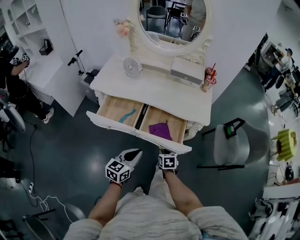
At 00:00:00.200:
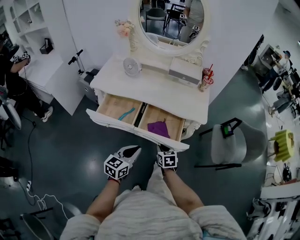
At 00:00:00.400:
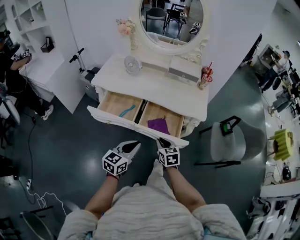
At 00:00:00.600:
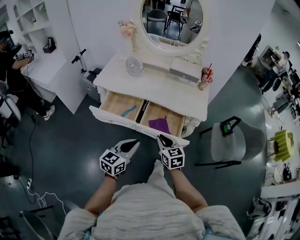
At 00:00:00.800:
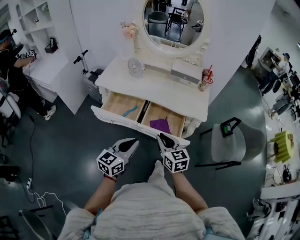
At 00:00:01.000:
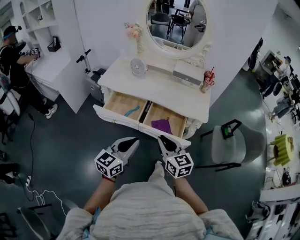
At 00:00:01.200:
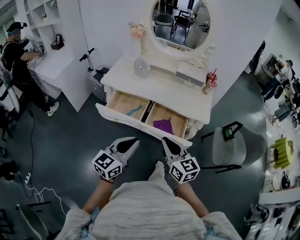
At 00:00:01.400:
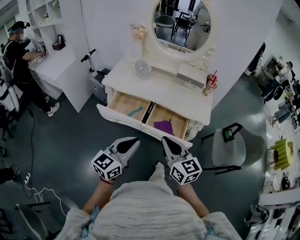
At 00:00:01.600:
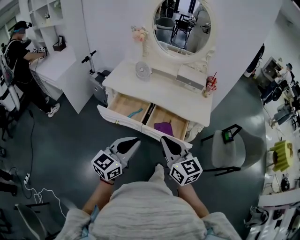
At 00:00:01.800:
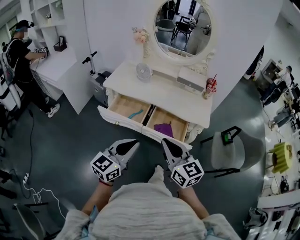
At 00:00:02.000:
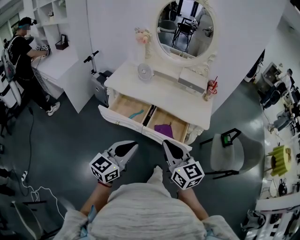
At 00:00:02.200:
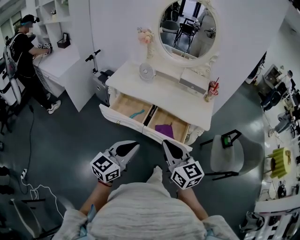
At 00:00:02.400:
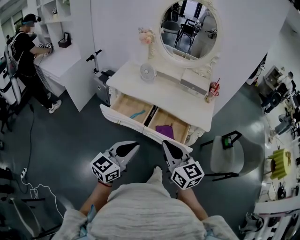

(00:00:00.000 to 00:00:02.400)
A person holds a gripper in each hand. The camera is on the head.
00:00:00.000 - 00:00:01.200: The left gripper shifts roughly 15 cm upward and backward; the right gripper is displaced upward by some 30 cm, and tips its fingers upward by roughly 40 degrees.
00:00:01.200 - 00:00:02.400: The right gripper shifts roughly 5 cm upward.

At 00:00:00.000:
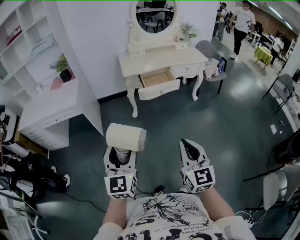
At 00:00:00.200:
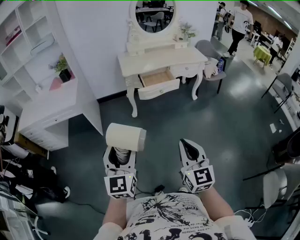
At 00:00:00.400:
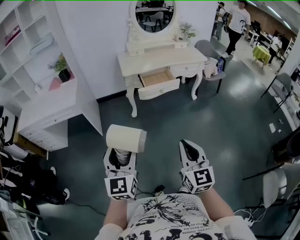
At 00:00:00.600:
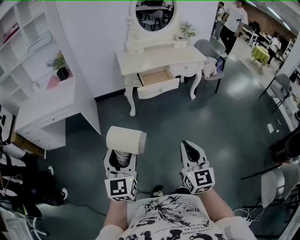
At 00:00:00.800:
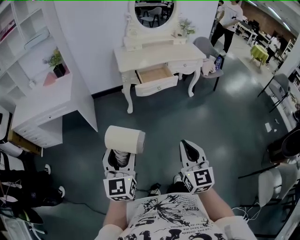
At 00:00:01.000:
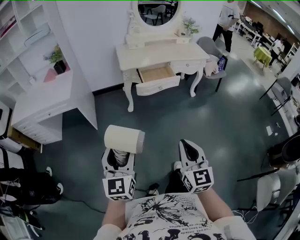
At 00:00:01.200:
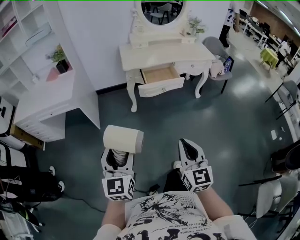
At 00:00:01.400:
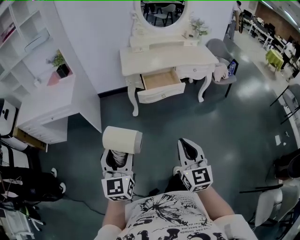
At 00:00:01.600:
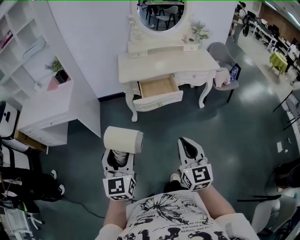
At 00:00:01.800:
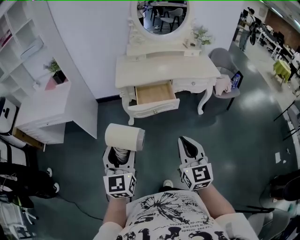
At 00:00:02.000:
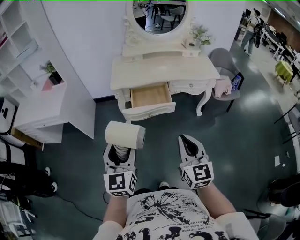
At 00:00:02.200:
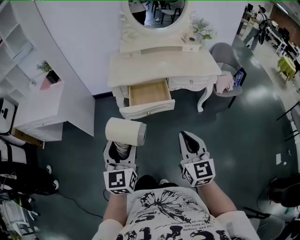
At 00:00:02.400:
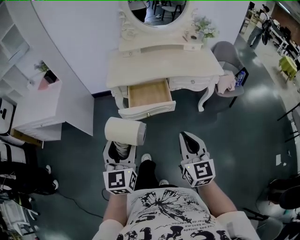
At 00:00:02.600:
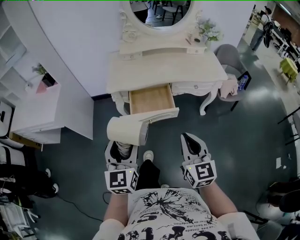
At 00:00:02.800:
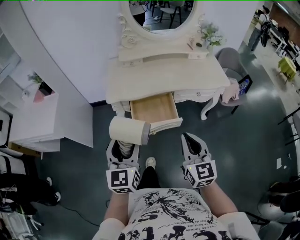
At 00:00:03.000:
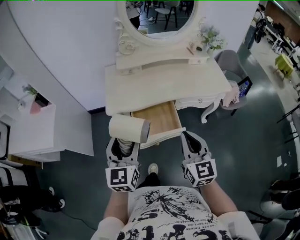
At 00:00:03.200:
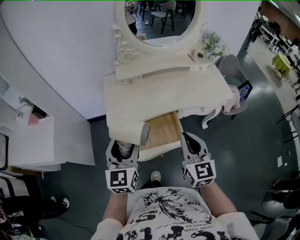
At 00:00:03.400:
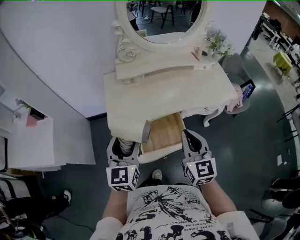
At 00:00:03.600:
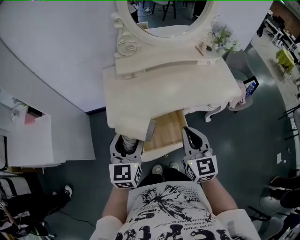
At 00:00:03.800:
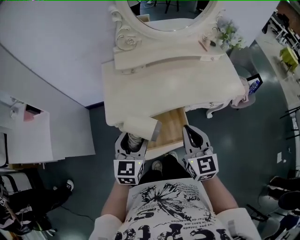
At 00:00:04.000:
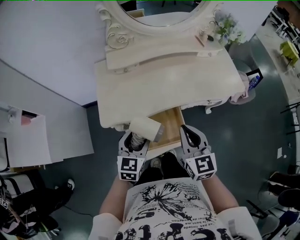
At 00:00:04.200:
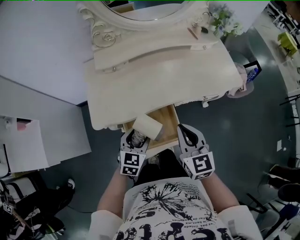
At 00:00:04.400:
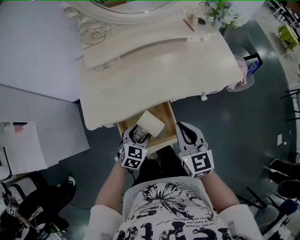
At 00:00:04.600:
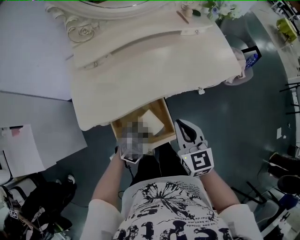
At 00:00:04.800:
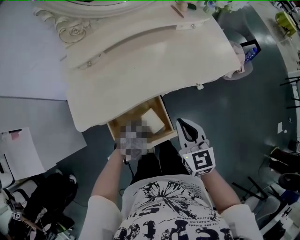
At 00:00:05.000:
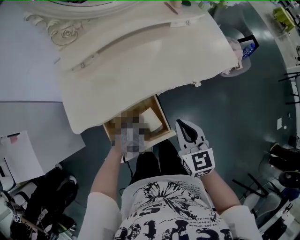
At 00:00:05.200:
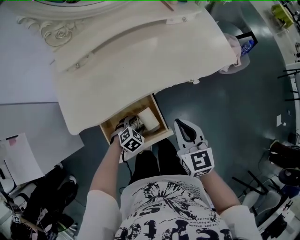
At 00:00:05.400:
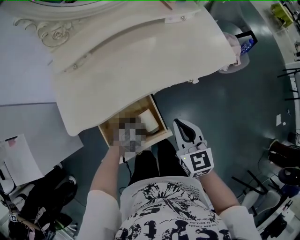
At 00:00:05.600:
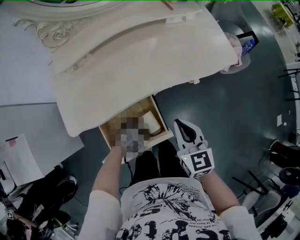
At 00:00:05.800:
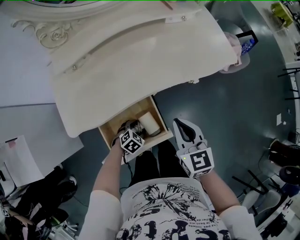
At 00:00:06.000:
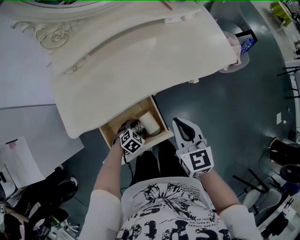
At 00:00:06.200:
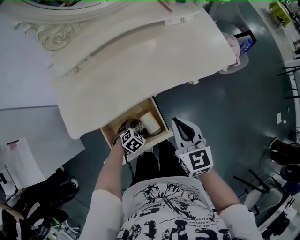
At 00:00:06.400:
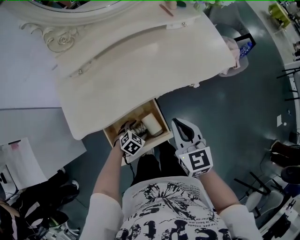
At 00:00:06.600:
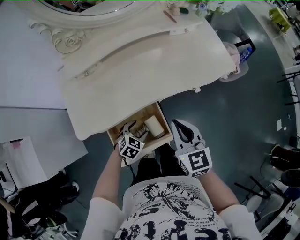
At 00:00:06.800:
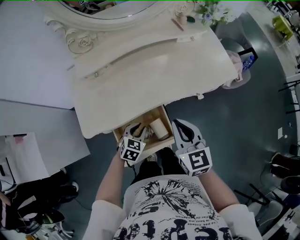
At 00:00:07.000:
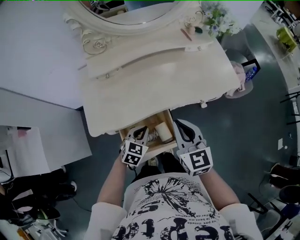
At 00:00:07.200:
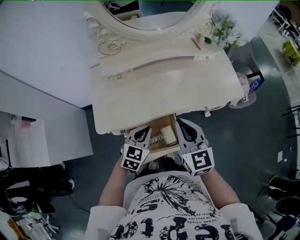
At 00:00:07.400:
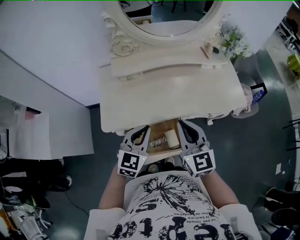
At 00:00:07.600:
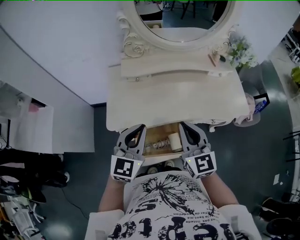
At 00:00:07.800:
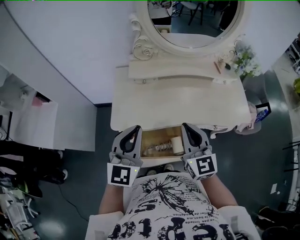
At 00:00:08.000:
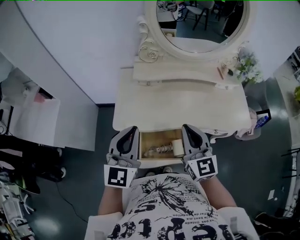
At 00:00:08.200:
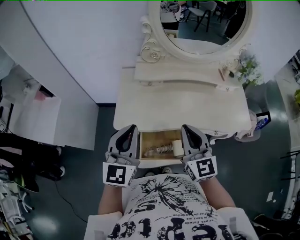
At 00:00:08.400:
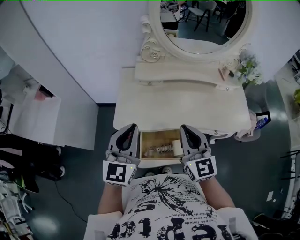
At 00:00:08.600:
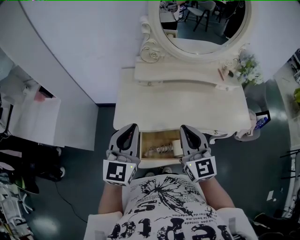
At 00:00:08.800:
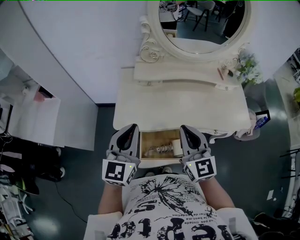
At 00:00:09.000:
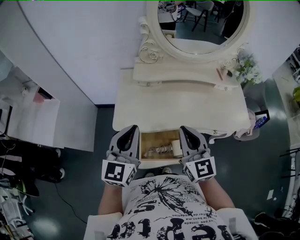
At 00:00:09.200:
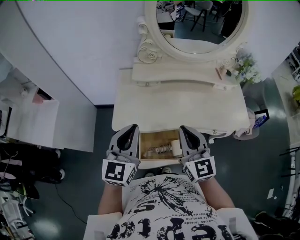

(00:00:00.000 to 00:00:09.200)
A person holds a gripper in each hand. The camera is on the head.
00:00:00.000 - 00:00:01.600: The two grippers go some 20 cm forward and to the right.
00:00:01.600 - 00:00:03.000: Both grippers move forward, approximately 35 cm.
00:00:03.000 - 00:00:04.600: The left gripper shifts about 40 cm downward and forward, and angles its fingers downward, by approximately 50 degrees. Meanwhile the right gripper moves forward and downward, roughly 25 cm.
00:00:04.600 - 00:00:06.200: The left gripper travels downward by approximately 10 cm, and rotates some 20 degrees.
00:00:06.200 - 00:00:07.600: The left gripper travels upward by approximately 40 cm, points its fingers about 60 degrees further upward, and closes up. Meanwhile the right gripper goes roughly 15 cm upward, and rotates approximately 30 degrees.
00:00:07.600 - 00:00:09.200: The left gripper shifts about 5 cm to the left.

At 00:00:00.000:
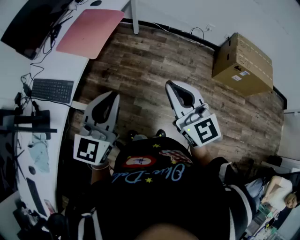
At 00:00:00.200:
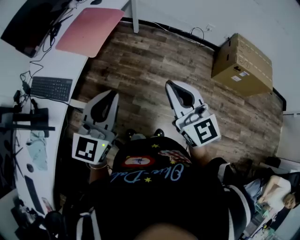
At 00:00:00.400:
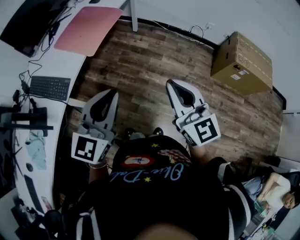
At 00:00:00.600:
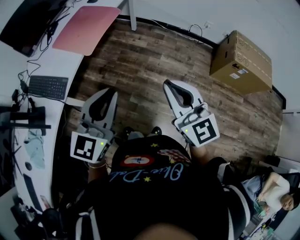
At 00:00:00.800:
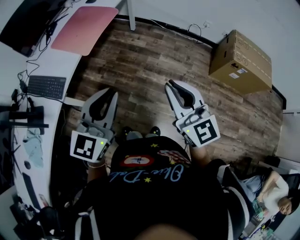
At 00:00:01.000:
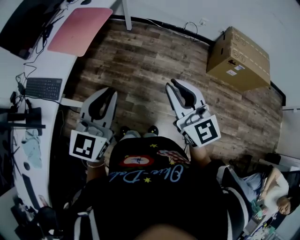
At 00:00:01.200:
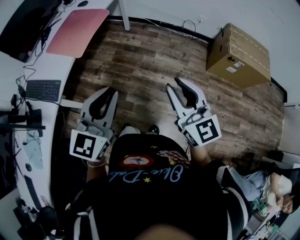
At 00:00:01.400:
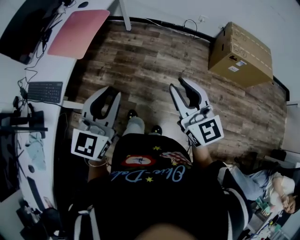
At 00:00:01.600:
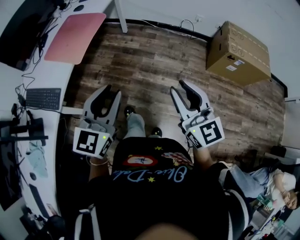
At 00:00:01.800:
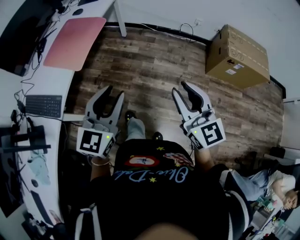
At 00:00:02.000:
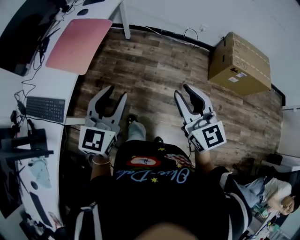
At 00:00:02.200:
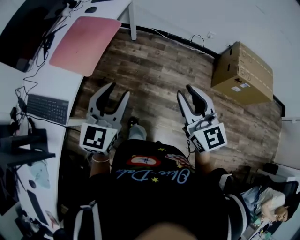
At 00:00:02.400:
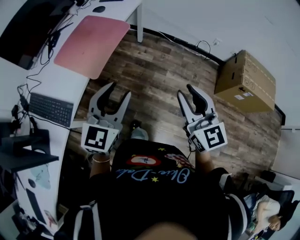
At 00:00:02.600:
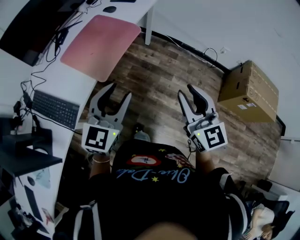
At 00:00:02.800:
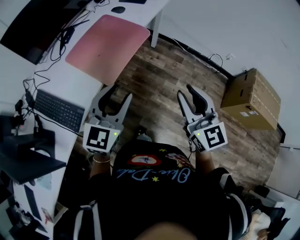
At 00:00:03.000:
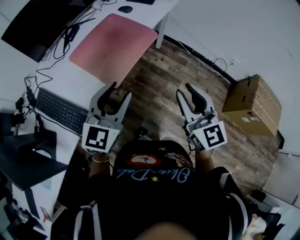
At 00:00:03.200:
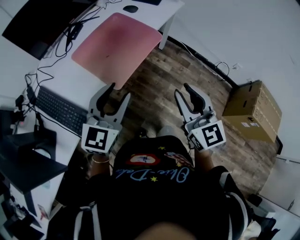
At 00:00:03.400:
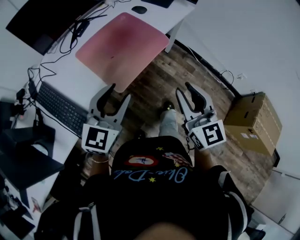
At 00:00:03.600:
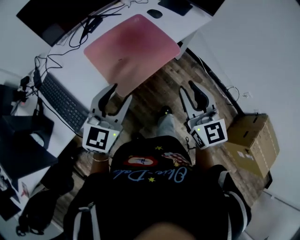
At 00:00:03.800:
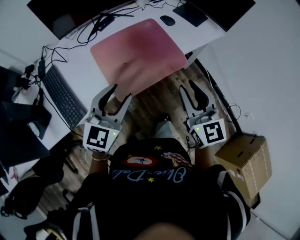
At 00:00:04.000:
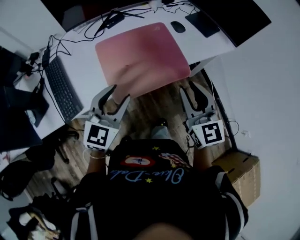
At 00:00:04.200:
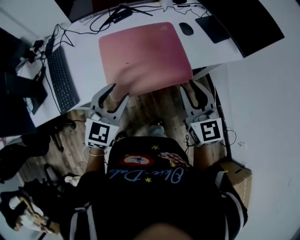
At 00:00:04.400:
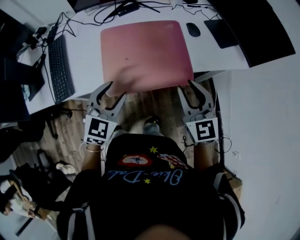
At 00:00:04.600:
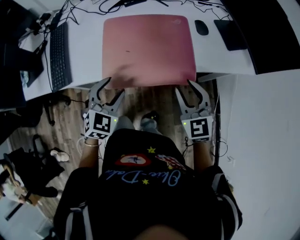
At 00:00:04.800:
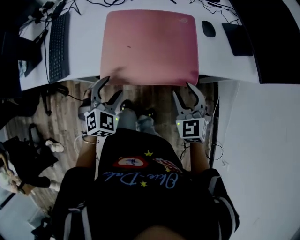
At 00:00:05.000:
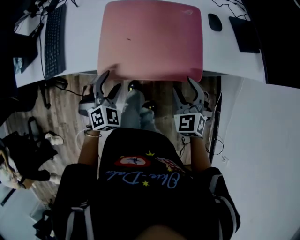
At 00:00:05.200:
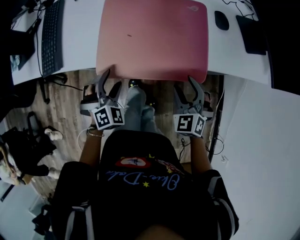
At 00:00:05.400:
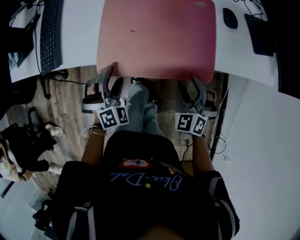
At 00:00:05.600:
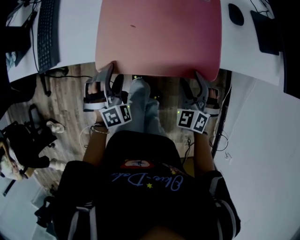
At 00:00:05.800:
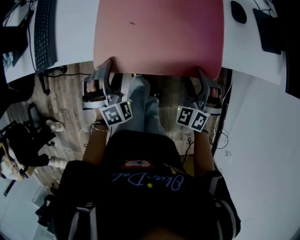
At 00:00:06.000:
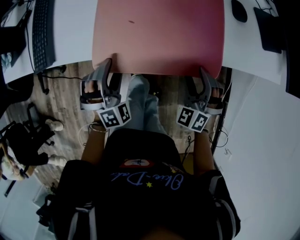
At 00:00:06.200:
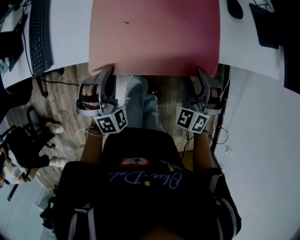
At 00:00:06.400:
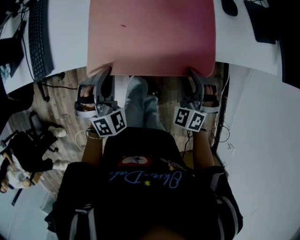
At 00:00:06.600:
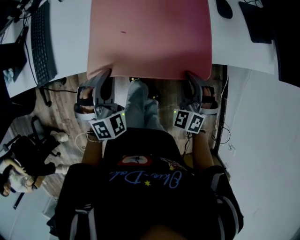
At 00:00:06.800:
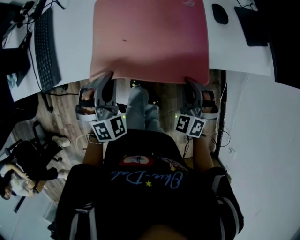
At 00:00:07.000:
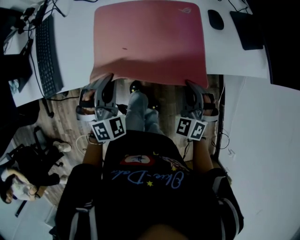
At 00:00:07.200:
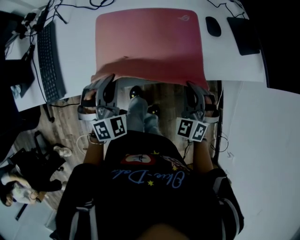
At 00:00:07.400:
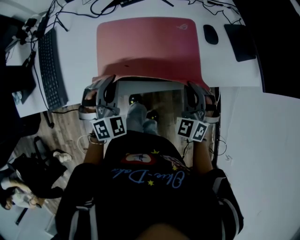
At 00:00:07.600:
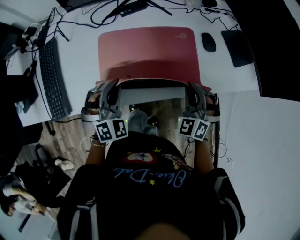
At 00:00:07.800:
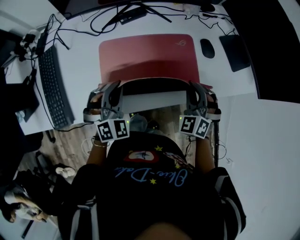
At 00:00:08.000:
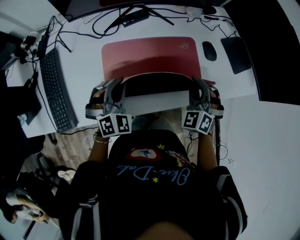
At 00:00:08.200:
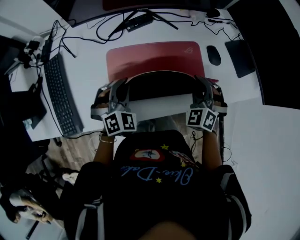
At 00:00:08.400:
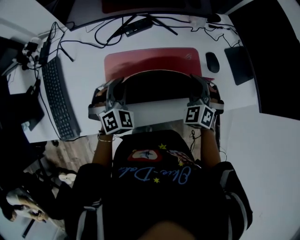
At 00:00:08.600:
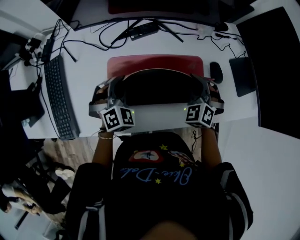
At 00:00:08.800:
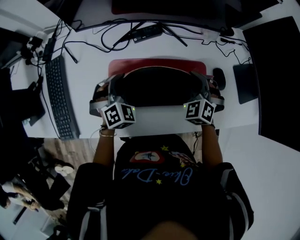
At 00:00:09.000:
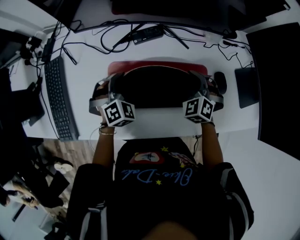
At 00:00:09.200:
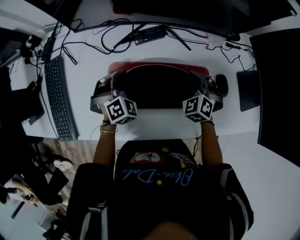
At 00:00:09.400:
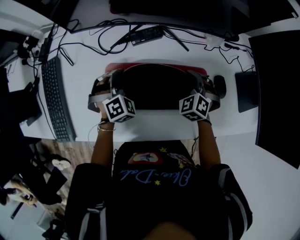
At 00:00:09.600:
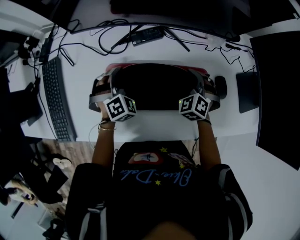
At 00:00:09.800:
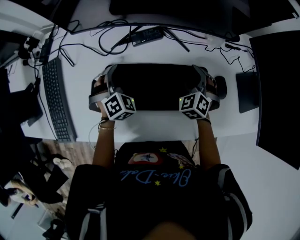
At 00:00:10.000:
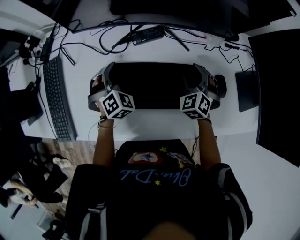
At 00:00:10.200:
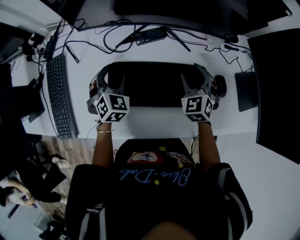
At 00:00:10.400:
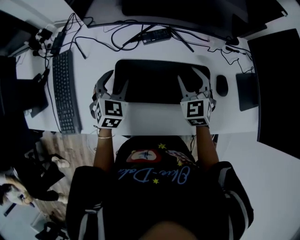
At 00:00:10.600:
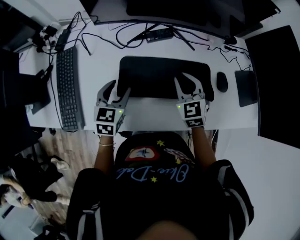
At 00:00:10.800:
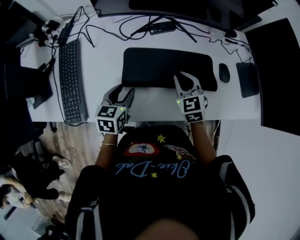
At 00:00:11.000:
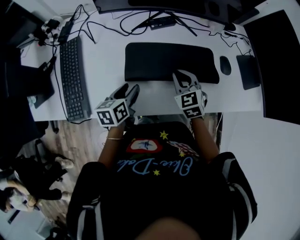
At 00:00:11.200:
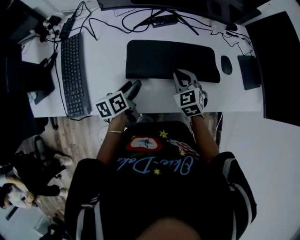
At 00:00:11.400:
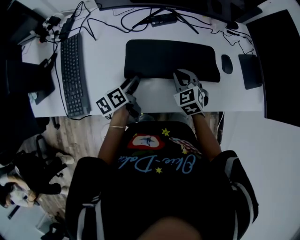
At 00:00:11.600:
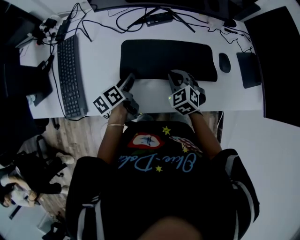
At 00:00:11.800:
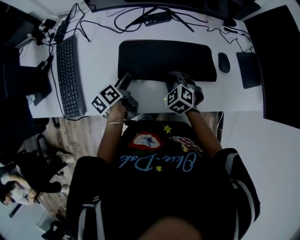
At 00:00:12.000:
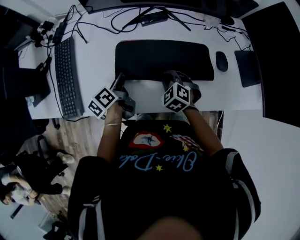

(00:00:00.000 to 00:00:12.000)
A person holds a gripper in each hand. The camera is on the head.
00:00:00.000 - 00:00:01.600: Both grippers travel together to the right, roughly 10 cm.
00:00:01.600 - 00:00:03.000: The two grippers go roughly 30 cm forward and to the left.
00:00:03.000 - 00:00:04.400: The left gripper shifts by approximately 20 cm, and turns by roughly 40 degrees; the right gripper ends up roughly 30 cm from where it was, and turns by some 40 degrees.
00:00:04.400 - 00:00:06.000: The grippers both shift downward by roughly 20 cm. The left gripper rotates roughly 50 degrees. The right gripper rotates around the line of its fingers by some 40 degrees, counterclockwise from behind, and opens.
00:00:06.000 - 00:00:07.600: The left gripper shifts about 15 cm forward and upward, and closes. The right gripper moves upward and forward, approximately 15 cm, and closes.
00:00:07.600 - 00:00:09.000: The grippers both shift forward by approximately 20 cm.
00:00:09.000 - 00:00:10.400: The right gripper heads upward and to the left, covering approximately 10 cm, changes its angle by about 20 degrees, and opens up, while the left gripper ends up about 5 cm from where it was, turns by approximately 30 degrees, and opens its fingers.
00:00:10.400 - 00:00:12.000: The left gripper travels backward and downward by roughly 10 cm, rolls counterclockwise, seen from behind, by roughly 80 degrees, and closes its fingers, while the right gripper heads backward, downward and to the left, covering roughly 15 cm, rotates some 30 degrees, and closes up.
